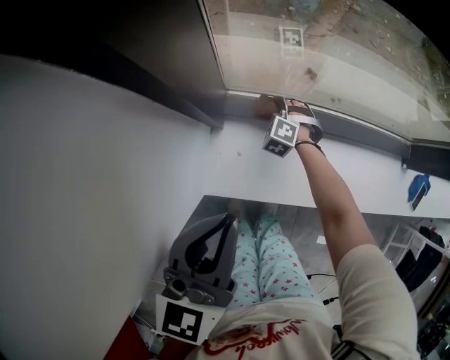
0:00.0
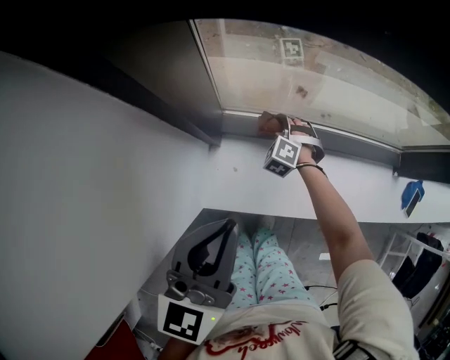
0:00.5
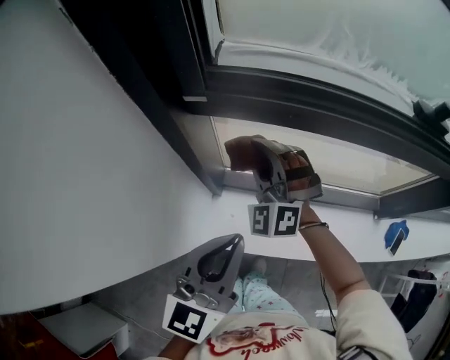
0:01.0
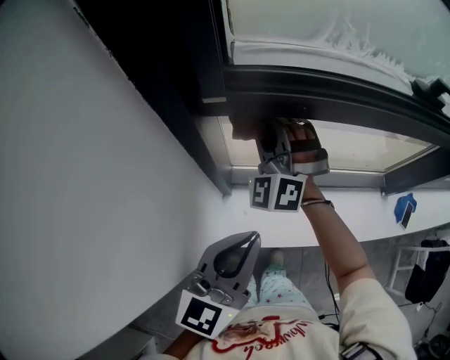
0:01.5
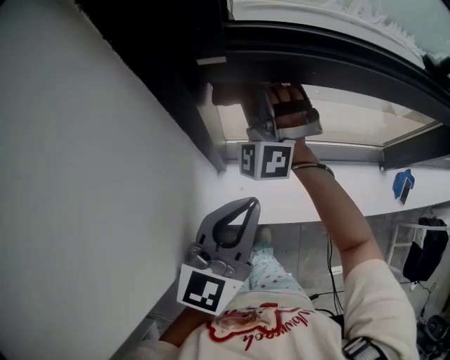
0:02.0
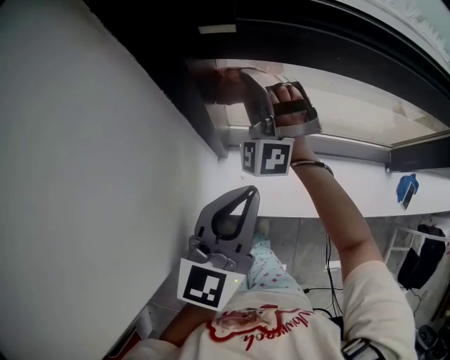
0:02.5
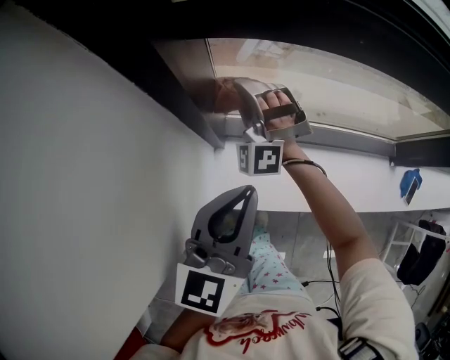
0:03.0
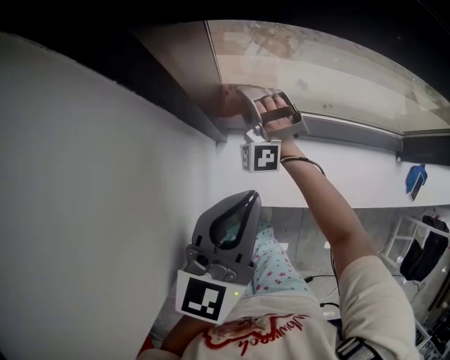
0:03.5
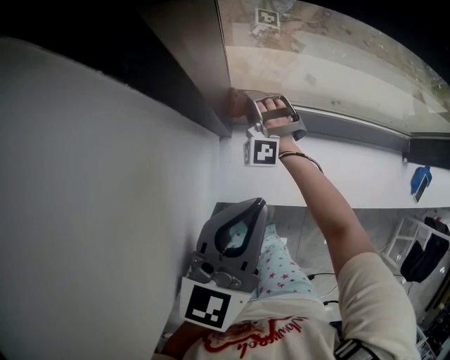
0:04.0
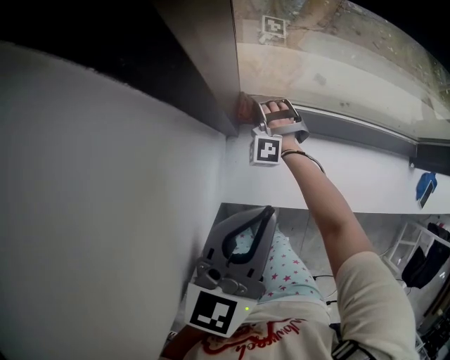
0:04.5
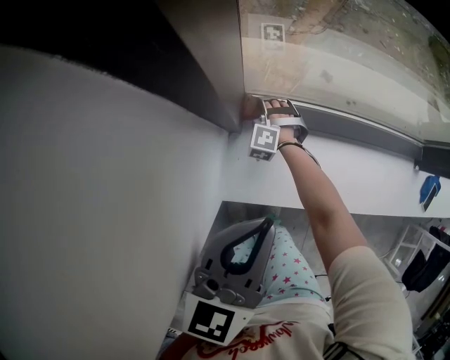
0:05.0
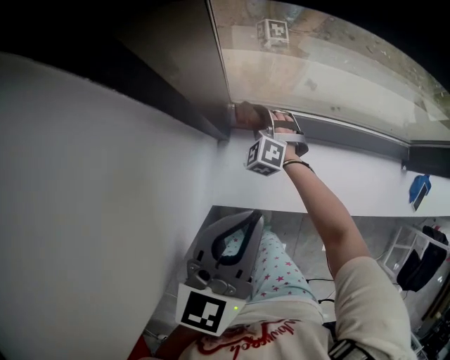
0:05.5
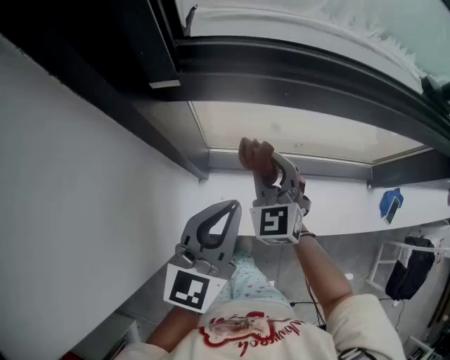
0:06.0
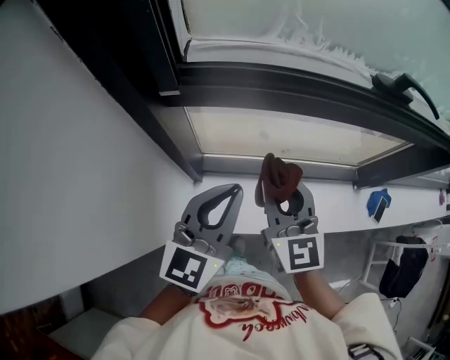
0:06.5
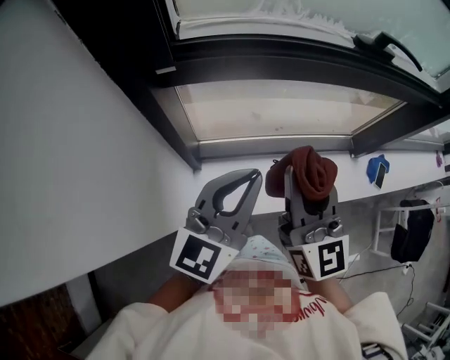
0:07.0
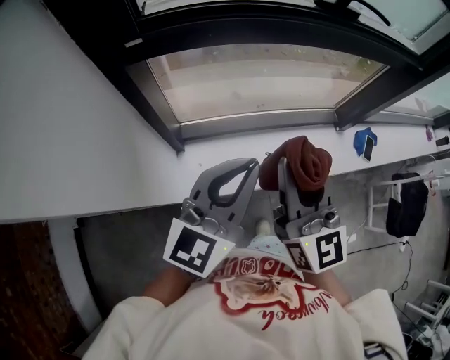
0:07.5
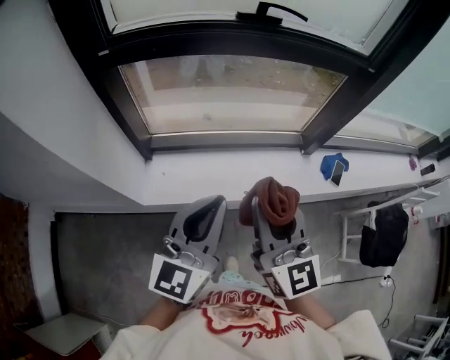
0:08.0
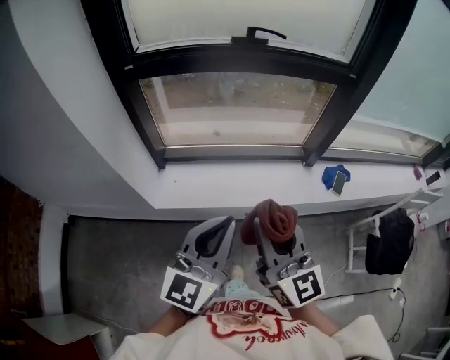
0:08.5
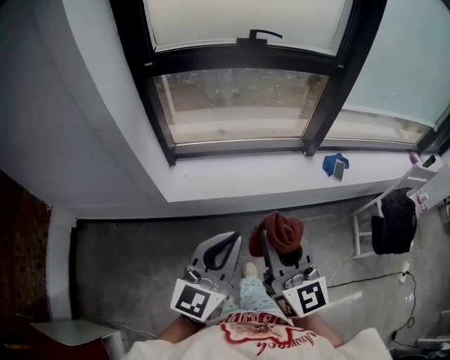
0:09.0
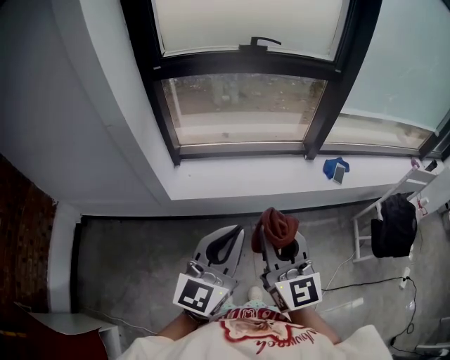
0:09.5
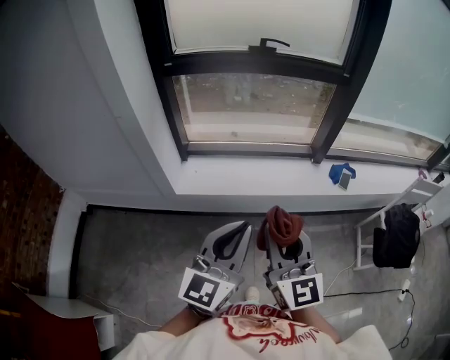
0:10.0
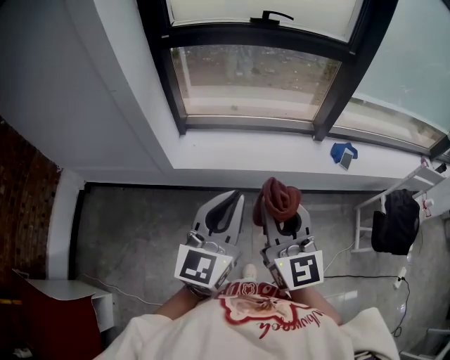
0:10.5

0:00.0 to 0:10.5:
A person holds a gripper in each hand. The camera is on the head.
0:00.0 to 0:02.0: The right gripper heads upward, covering about 50 cm, and points its fingers roughly 50 degrees further upward. The left gripper moves upward, approximately 10 cm.
0:02.0 to 0:04.0: The right gripper shifts roughly 35 cm downward, and swivels about 30 degrees; the left gripper travels downward by about 10 cm.
0:04.0 to 0:06.5: The right gripper heads upward and to the right, covering some 40 cm, and rolls clockwise, seen from behind, by some 70 degrees. Meanwhile the left gripper is displaced upward and to the right by roughly 20 cm.
0:06.5 to 0:08.5: The two grippers travel together, backward and to the right, approximately 40 cm.
0:08.5 to 0:10.5: The grippers both shift backward by roughly 15 cm.

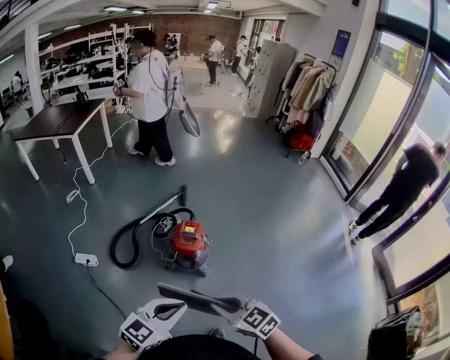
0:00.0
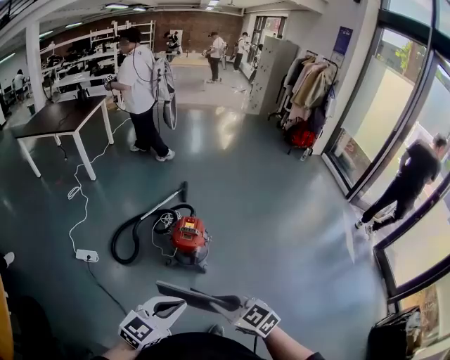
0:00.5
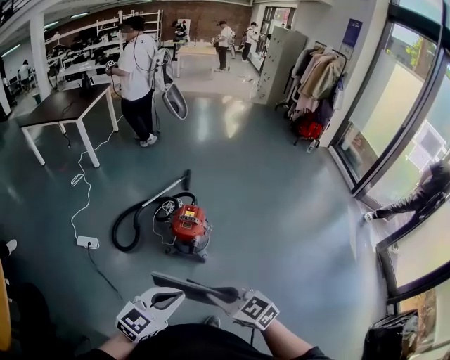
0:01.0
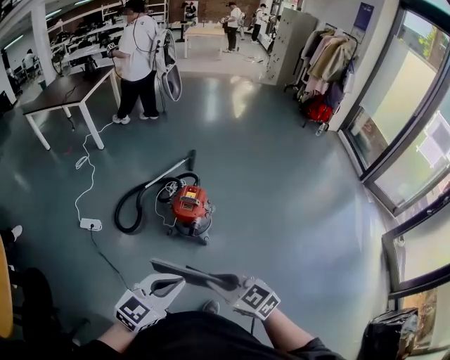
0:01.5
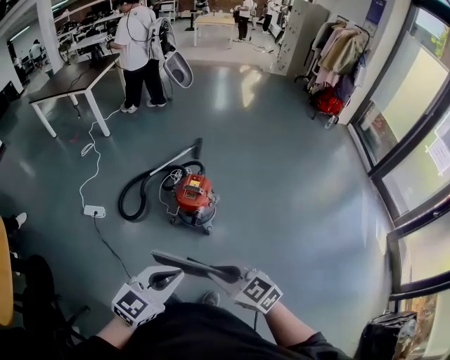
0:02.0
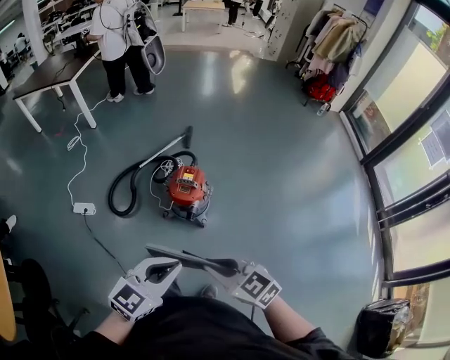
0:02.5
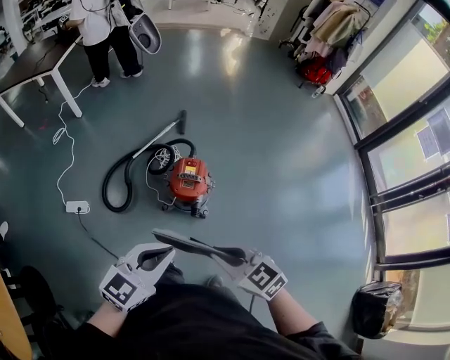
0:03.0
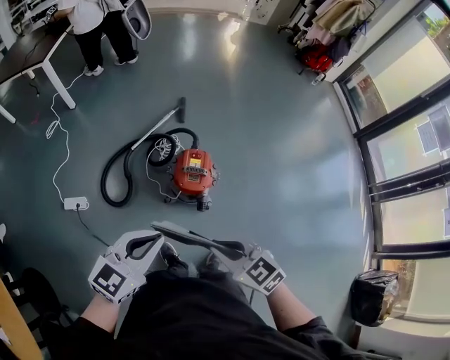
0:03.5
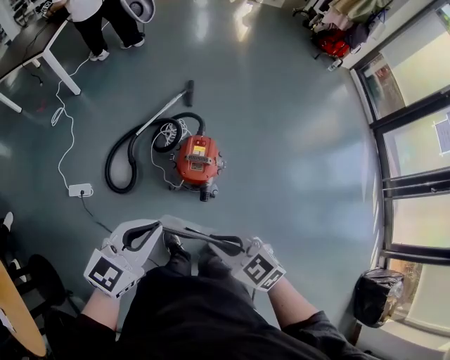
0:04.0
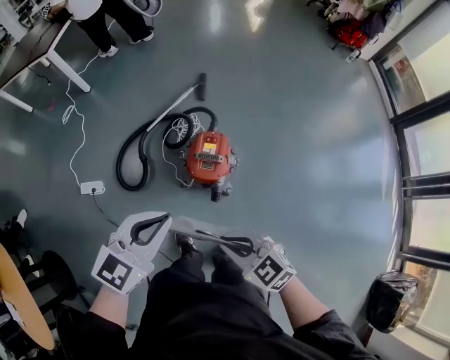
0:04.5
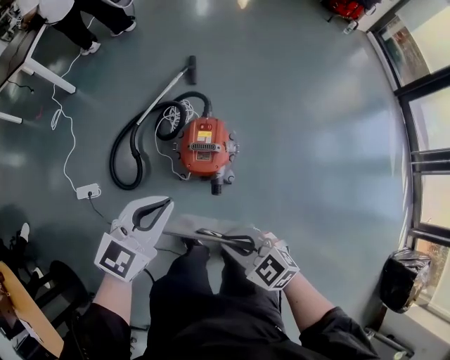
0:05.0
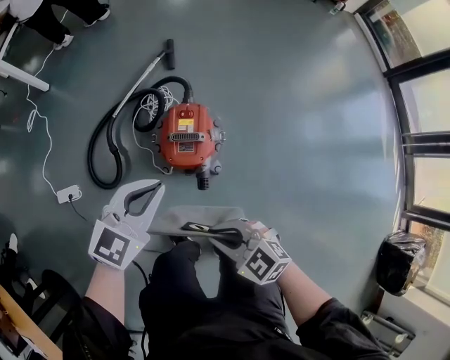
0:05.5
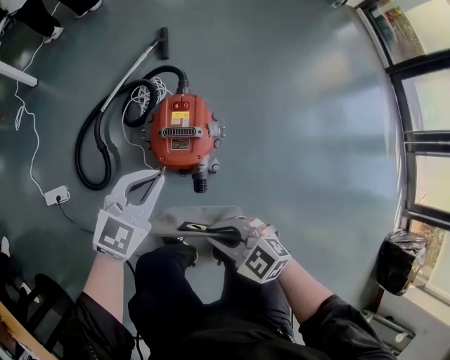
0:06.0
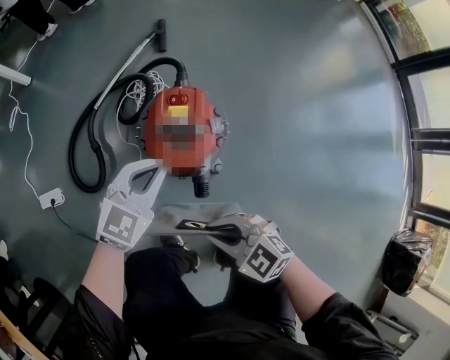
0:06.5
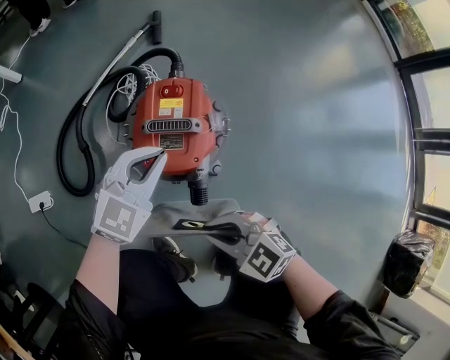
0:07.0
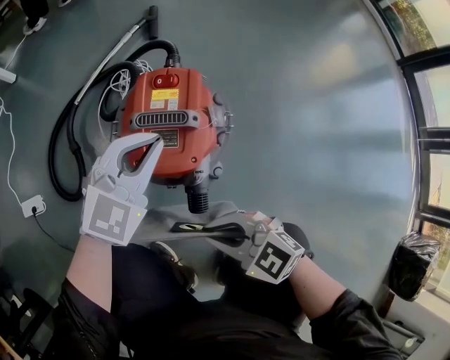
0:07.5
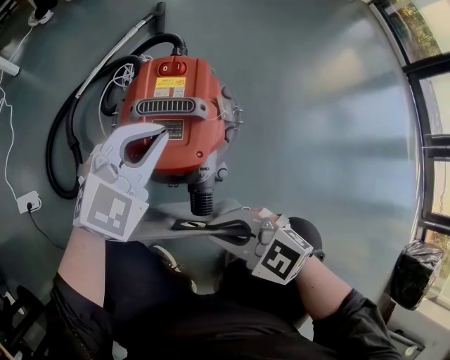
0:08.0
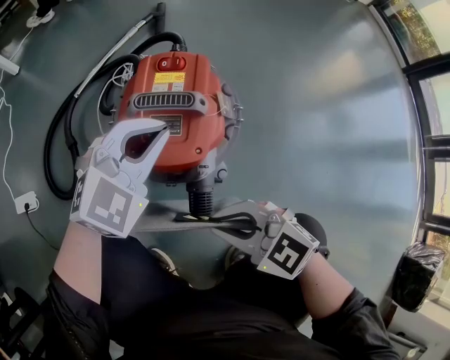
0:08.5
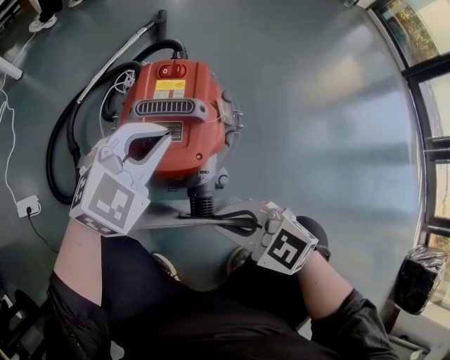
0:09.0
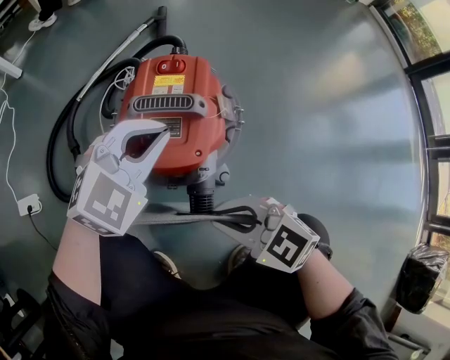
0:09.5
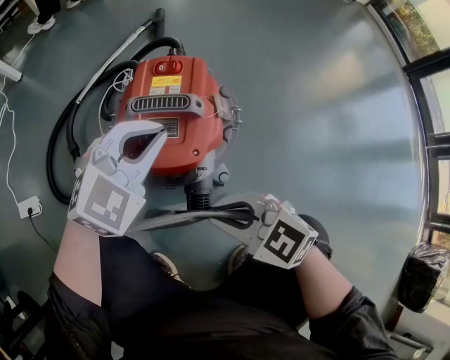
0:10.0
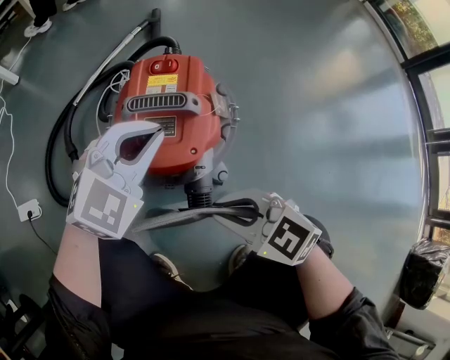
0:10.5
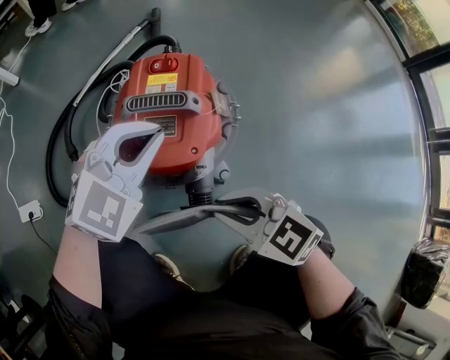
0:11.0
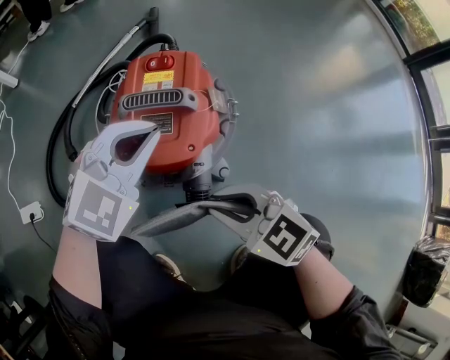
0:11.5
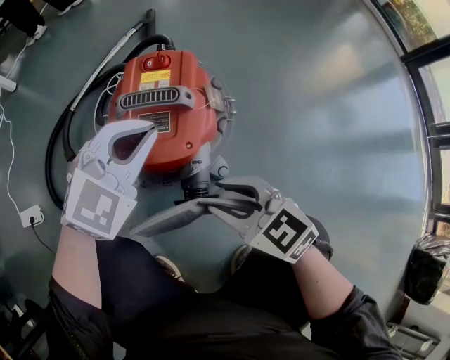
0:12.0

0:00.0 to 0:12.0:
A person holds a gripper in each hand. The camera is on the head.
0:00.0 to 0:02.0: The grippers both shift to the right by roughly 10 cm.
0:02.0 to 0:04.0: Both grippers move forward and to the left, some 25 cm.
0:04.0 to 0:06.0: The left gripper shifts some 35 cm downward and forward. The right gripper is displaced downward by approximately 25 cm.
0:06.0 to 0:08.0: The grippers both shift downward by about 20 cm. The left gripper changes its angle by some 20 degrees.
0:08.0 to 0:10.0: The grippers move only a little.
0:10.0 to 0:12.0: The right gripper opens.

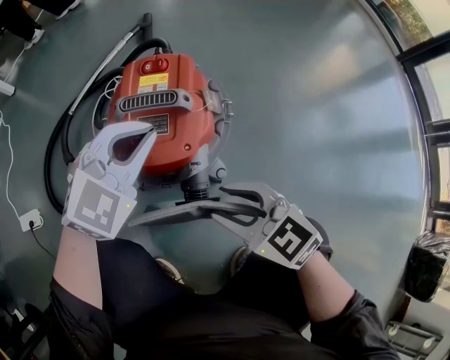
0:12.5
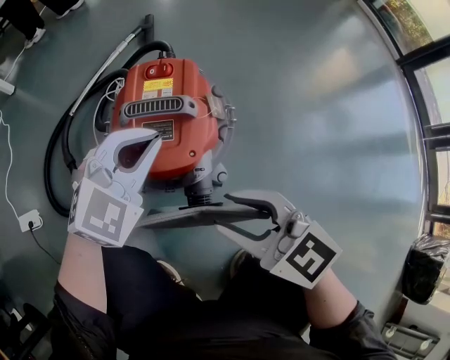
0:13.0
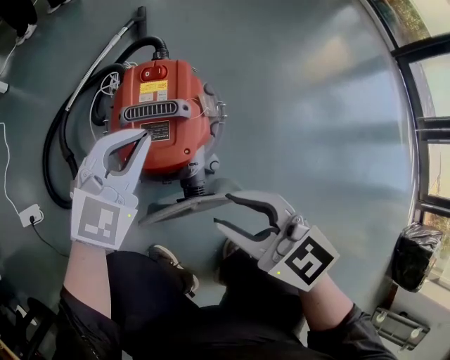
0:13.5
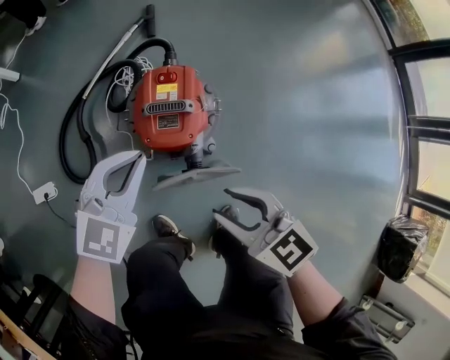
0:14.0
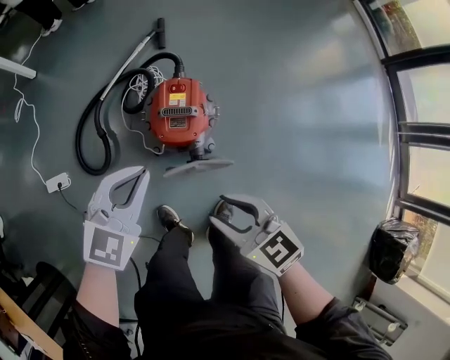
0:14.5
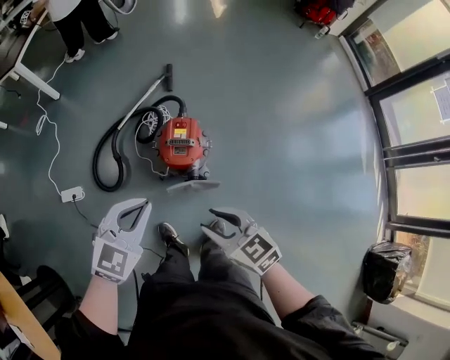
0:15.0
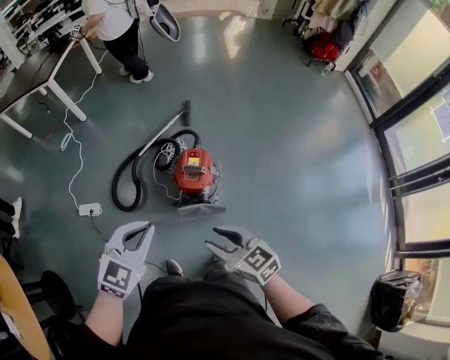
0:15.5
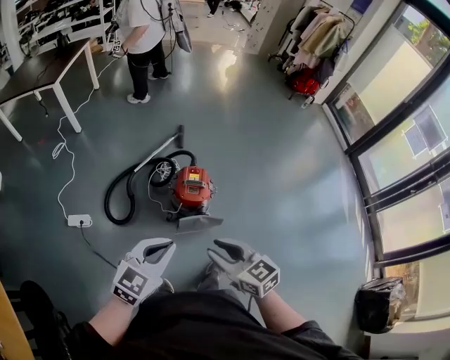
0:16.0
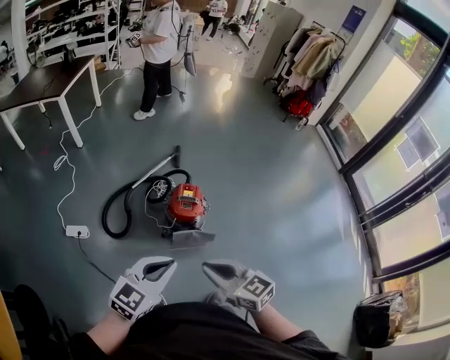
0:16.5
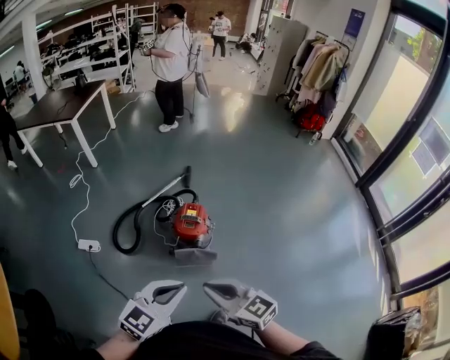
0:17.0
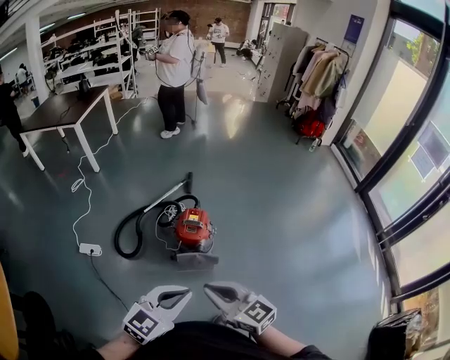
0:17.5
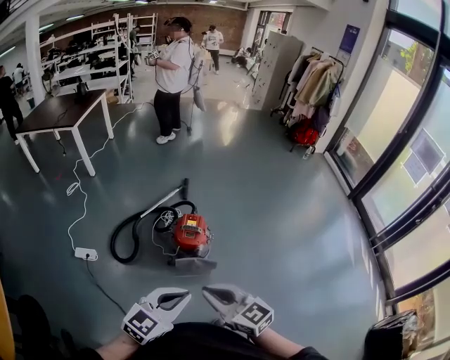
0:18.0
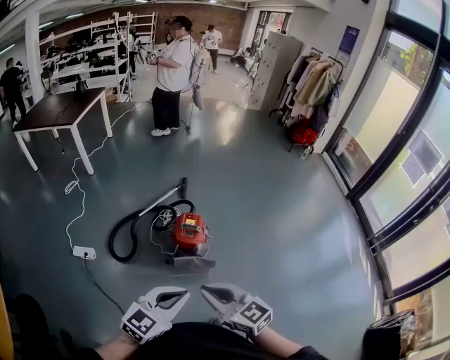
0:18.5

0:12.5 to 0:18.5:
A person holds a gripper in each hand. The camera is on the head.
0:12.5 to 0:14.5: Both grippers travel together upward, roughly 30 cm.
0:14.5 to 0:16.5: The right gripper travels upward and backward by some 30 cm, and closes its fingers. The left gripper heads backward and upward, covering some 40 cm.
0:16.5 to 0:18.5: The right gripper changes place by approximately 5 cm. Meanwhile the left gripper shifts some 5 cm to the right.
